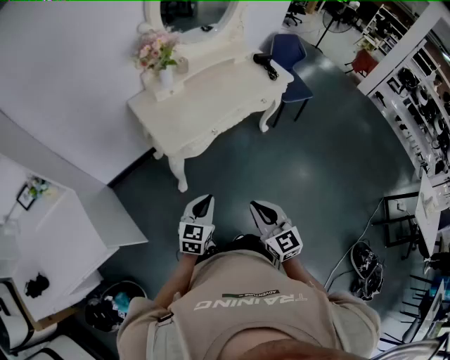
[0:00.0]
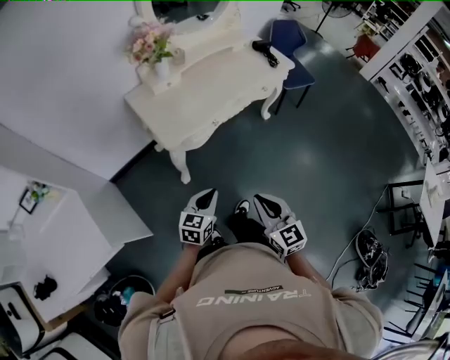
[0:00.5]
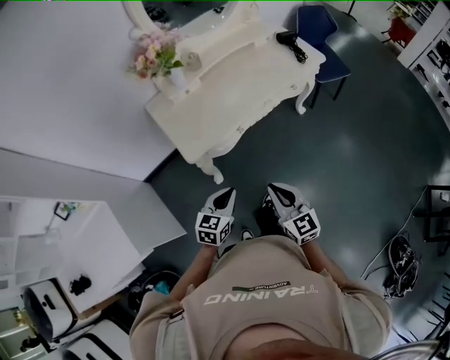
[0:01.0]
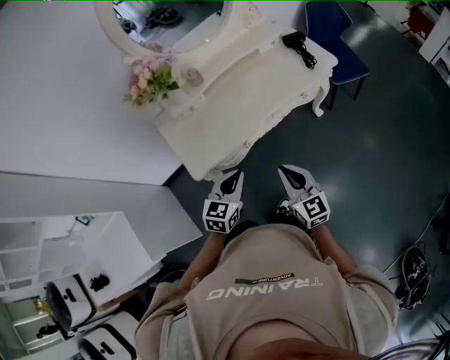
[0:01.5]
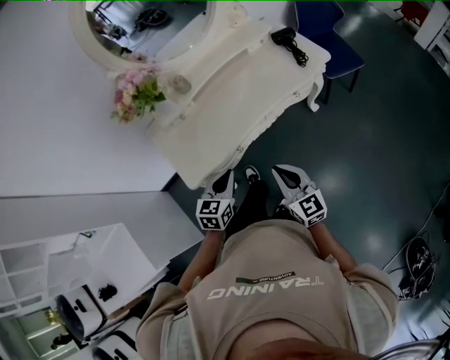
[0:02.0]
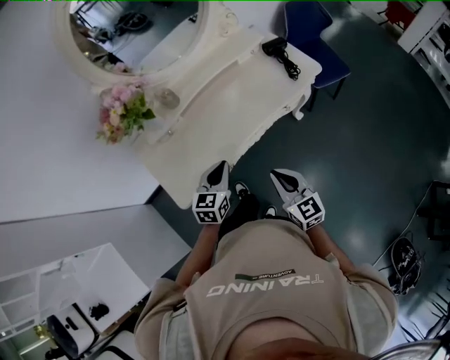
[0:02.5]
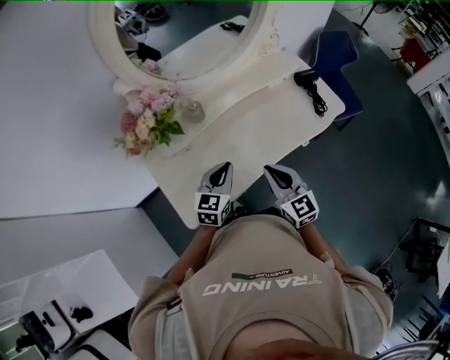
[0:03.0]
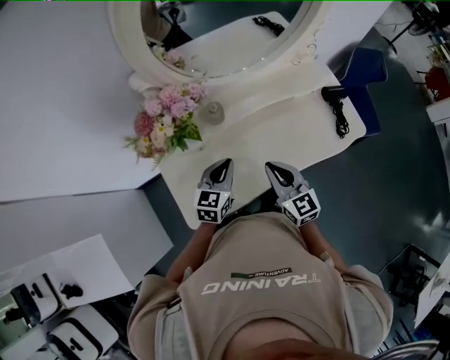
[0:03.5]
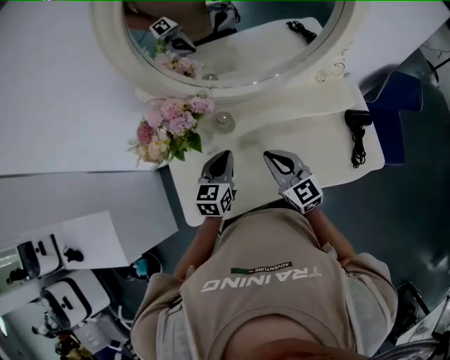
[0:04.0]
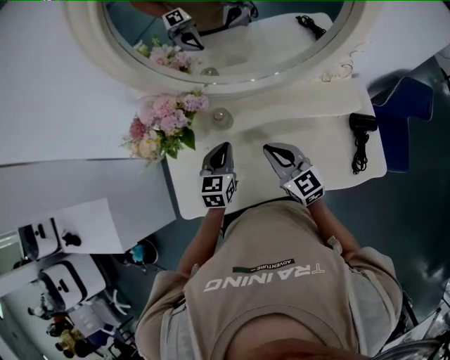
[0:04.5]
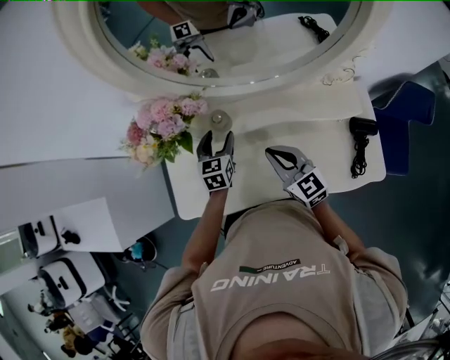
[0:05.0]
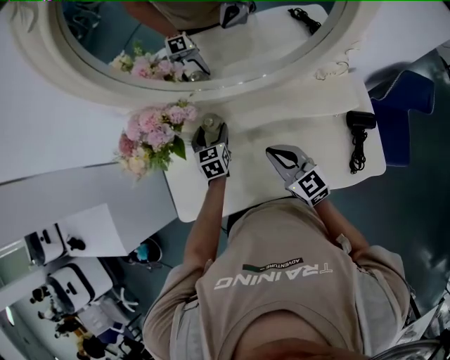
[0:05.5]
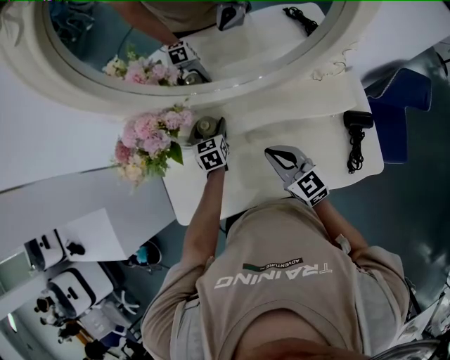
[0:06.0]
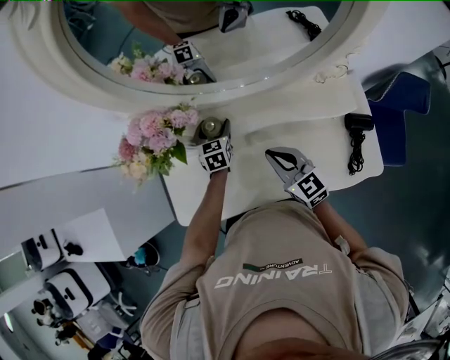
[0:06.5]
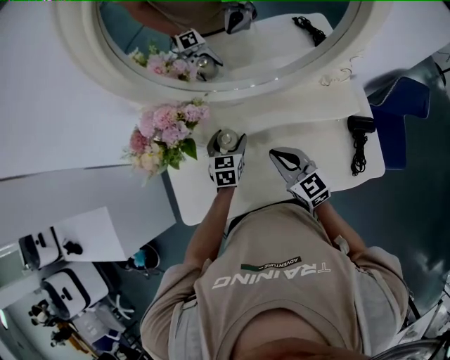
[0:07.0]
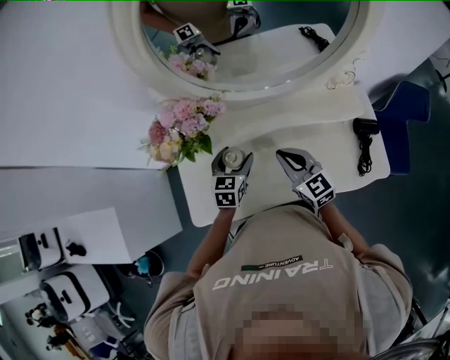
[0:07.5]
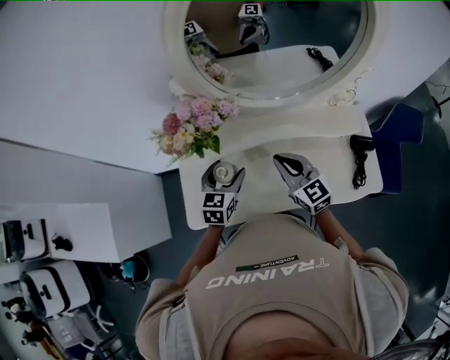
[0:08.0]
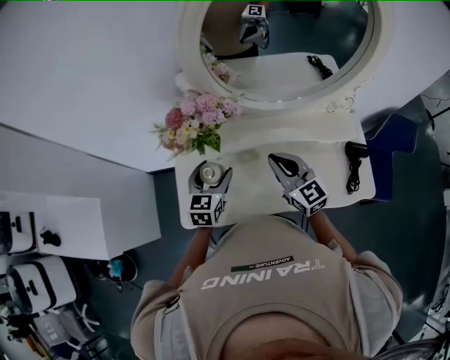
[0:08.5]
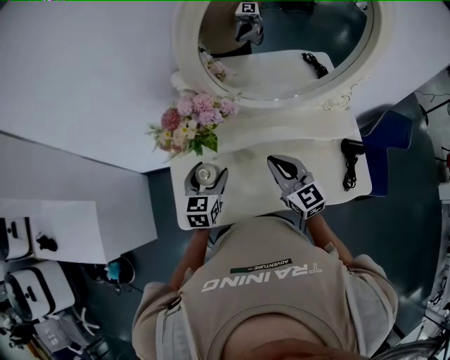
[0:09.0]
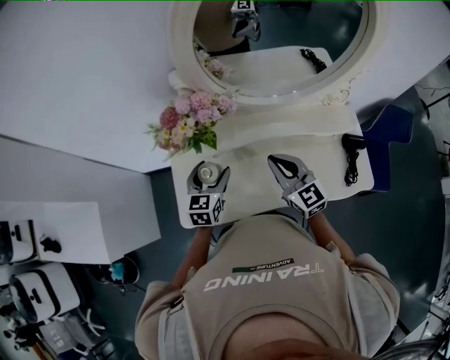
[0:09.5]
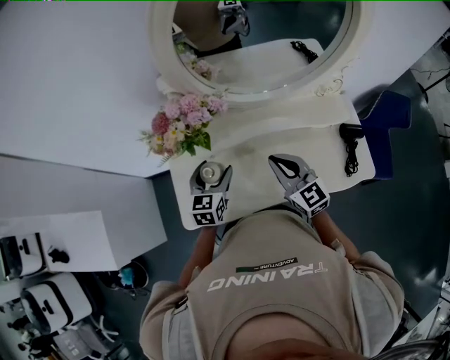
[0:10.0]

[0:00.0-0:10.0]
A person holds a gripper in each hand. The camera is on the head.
0:00.0 to 0:02.0: Both grippers move forward, some 30 cm.
0:02.0 to 0:04.0: The right gripper moves some 40 cm, and swivels some 30 degrees. Meanwhile the left gripper moves roughly 35 cm, and changes its angle by approximately 30 degrees.
0:04.0 to 0:06.0: The left gripper moves forward and downward, some 20 cm, turns by roughly 20 degrees, and opens; the right gripper heads to the right, covering approximately 5 cm.
0:06.0 to 0:08.0: The left gripper shifts some 20 cm backward, upward and to the left, while the right gripper travels to the left and upward by about 10 cm.
0:08.0 to 0:10.0: The grippers make only small movements.

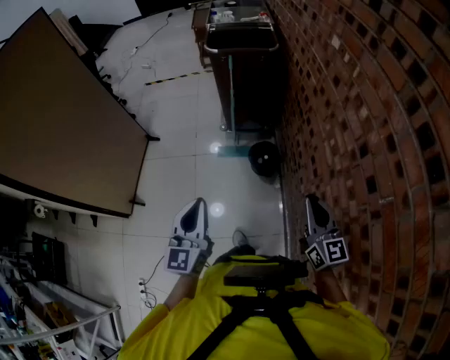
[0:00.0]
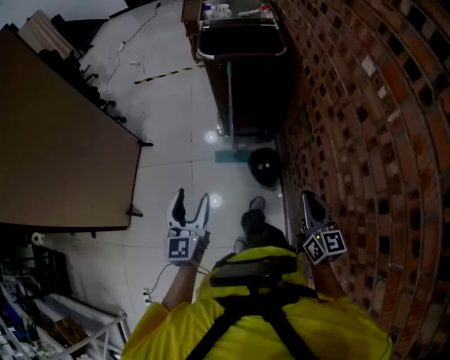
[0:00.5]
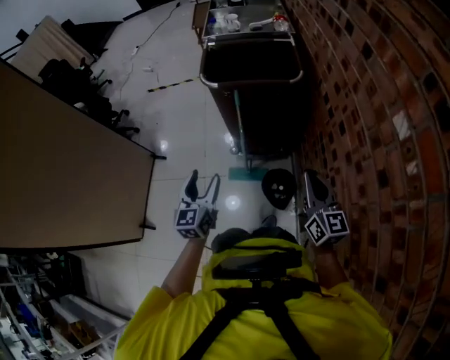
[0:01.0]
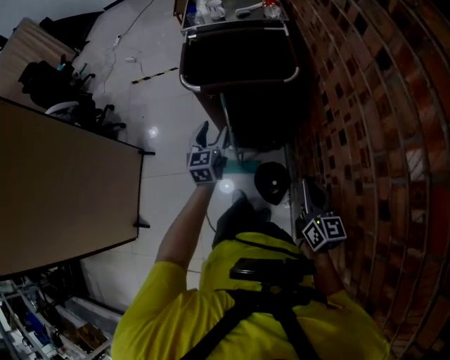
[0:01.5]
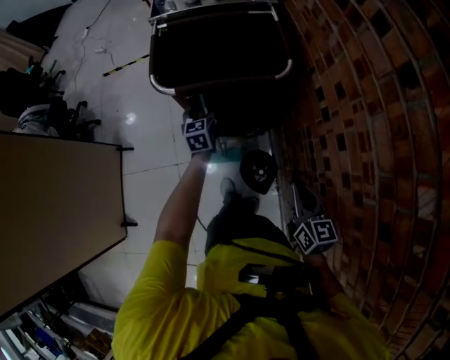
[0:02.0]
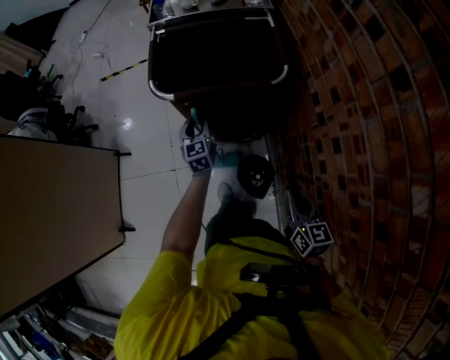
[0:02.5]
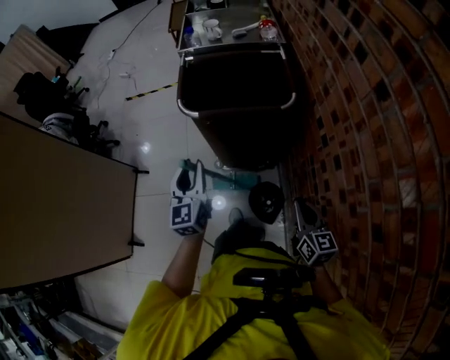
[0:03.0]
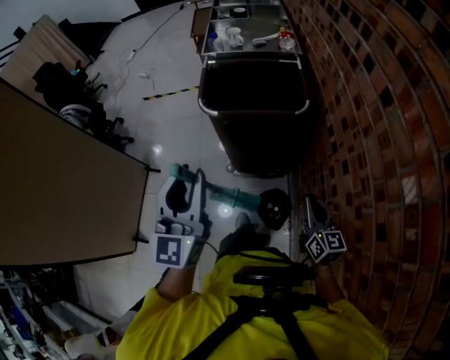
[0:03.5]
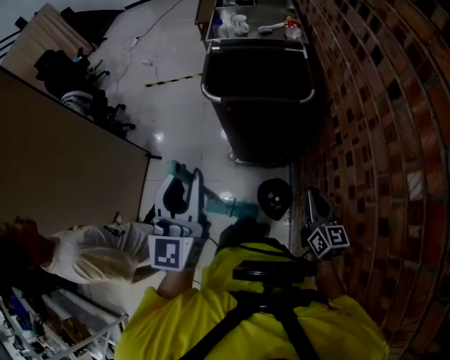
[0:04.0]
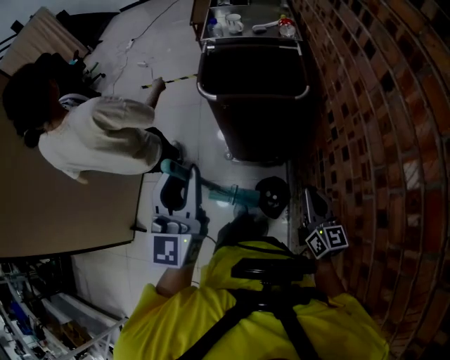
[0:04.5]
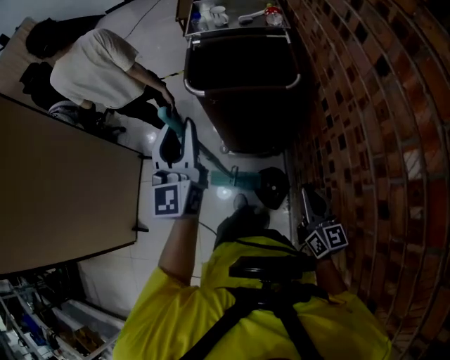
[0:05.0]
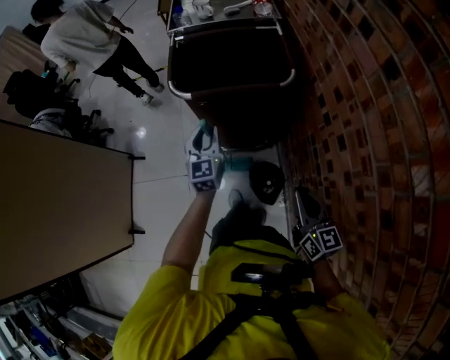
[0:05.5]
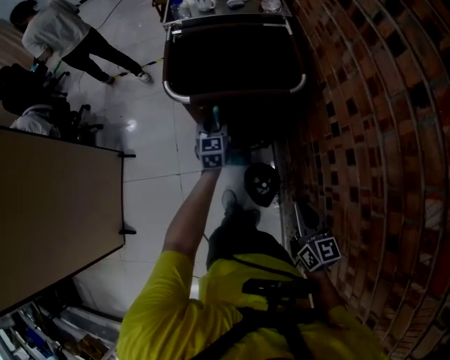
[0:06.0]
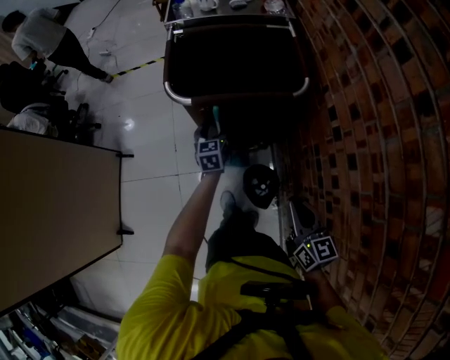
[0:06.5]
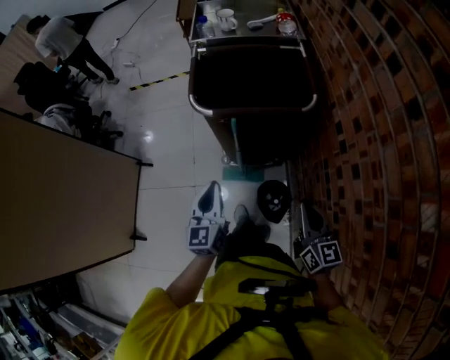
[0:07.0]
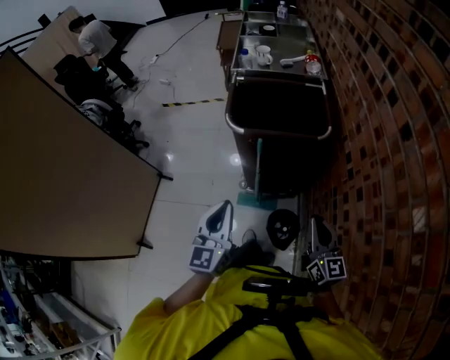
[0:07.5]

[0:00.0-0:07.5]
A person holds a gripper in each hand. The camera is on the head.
0:00.0 to 0:02.0: The pair of grippers is taken forward, some 60 cm. The left gripper turns by about 20 degrees, and opens up; the right gripper turns by approximately 20 degrees.
0:02.0 to 0:04.0: The left gripper shifts approximately 50 cm upward and backward, tips its fingers upward by about 30 degrees, and closes its fingers, while the right gripper travels upward by about 5 cm.
0:04.0 to 0:05.5: The left gripper is displaced downward and forward by some 30 cm.
0:05.5 to 0:07.5: The left gripper moves backward and upward, about 20 cm, and closes up. The right gripper moves upward, roughly 5 cm.
